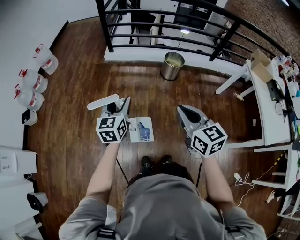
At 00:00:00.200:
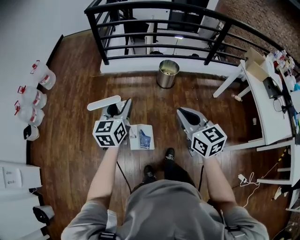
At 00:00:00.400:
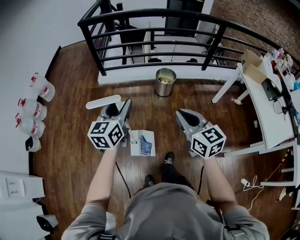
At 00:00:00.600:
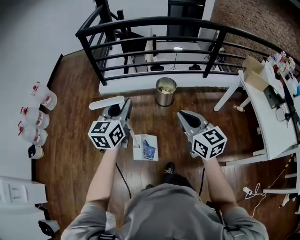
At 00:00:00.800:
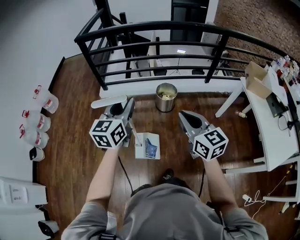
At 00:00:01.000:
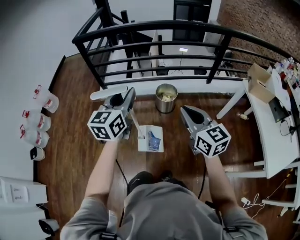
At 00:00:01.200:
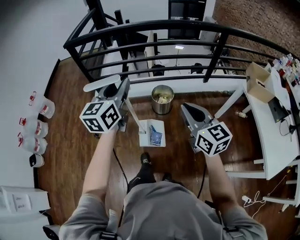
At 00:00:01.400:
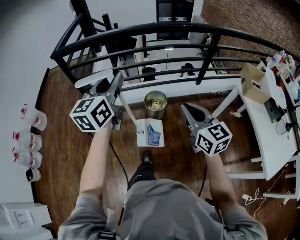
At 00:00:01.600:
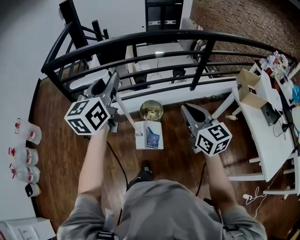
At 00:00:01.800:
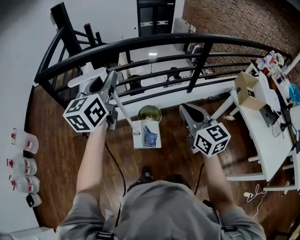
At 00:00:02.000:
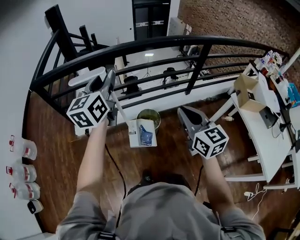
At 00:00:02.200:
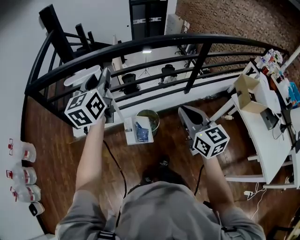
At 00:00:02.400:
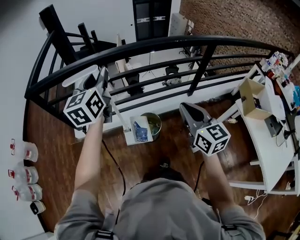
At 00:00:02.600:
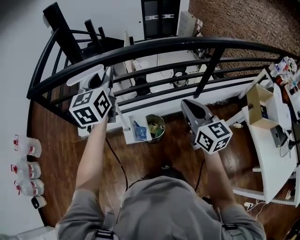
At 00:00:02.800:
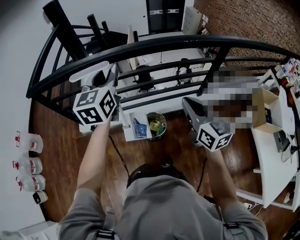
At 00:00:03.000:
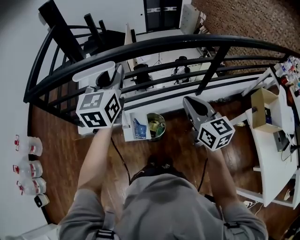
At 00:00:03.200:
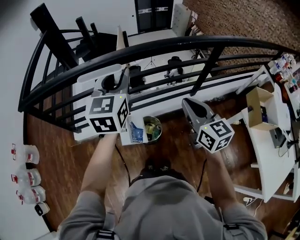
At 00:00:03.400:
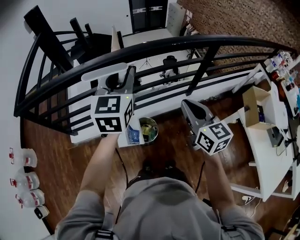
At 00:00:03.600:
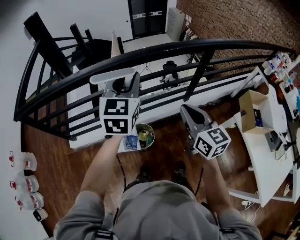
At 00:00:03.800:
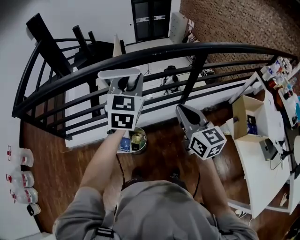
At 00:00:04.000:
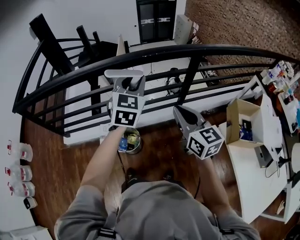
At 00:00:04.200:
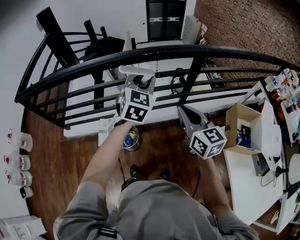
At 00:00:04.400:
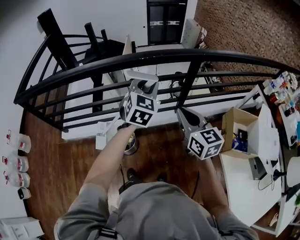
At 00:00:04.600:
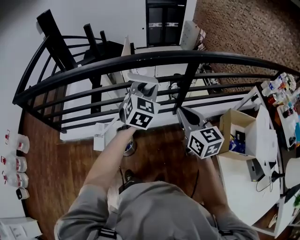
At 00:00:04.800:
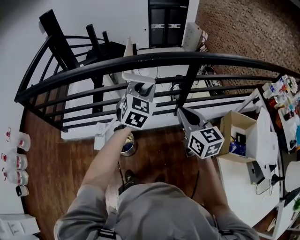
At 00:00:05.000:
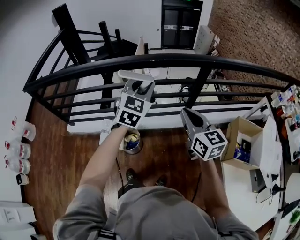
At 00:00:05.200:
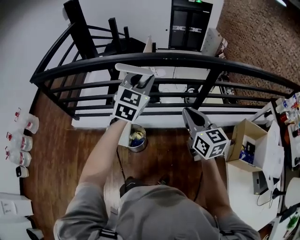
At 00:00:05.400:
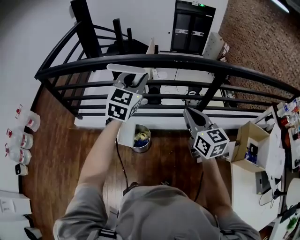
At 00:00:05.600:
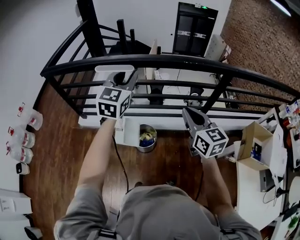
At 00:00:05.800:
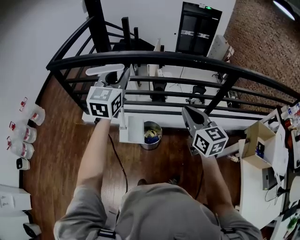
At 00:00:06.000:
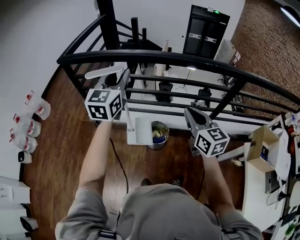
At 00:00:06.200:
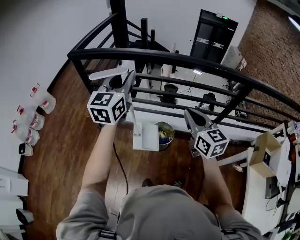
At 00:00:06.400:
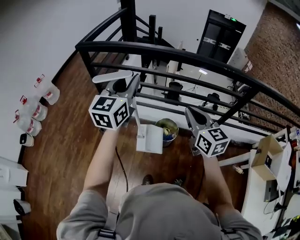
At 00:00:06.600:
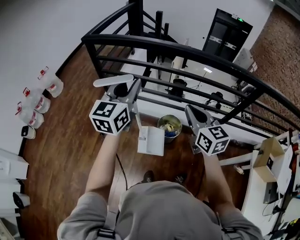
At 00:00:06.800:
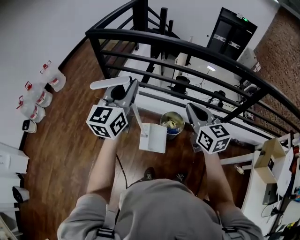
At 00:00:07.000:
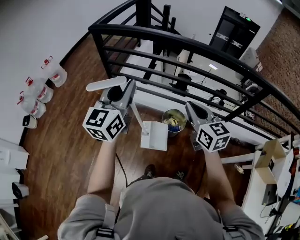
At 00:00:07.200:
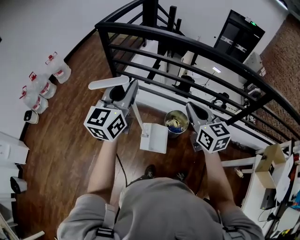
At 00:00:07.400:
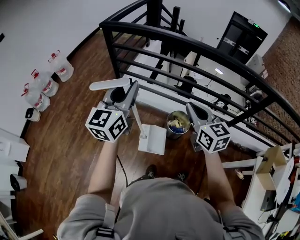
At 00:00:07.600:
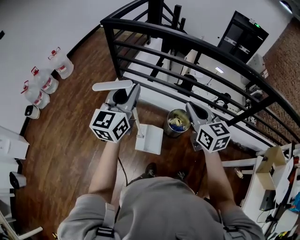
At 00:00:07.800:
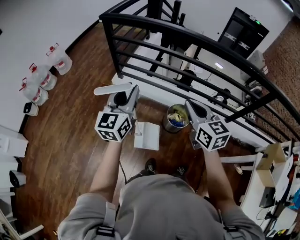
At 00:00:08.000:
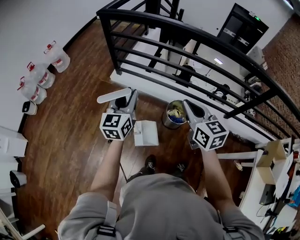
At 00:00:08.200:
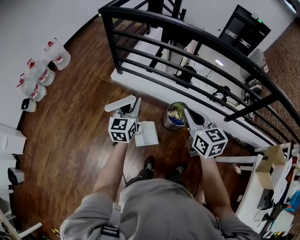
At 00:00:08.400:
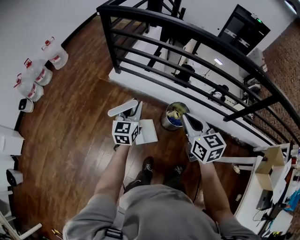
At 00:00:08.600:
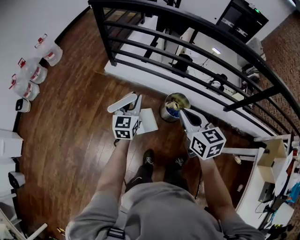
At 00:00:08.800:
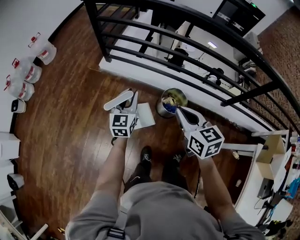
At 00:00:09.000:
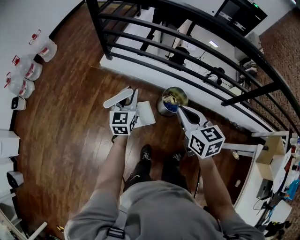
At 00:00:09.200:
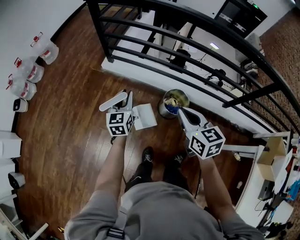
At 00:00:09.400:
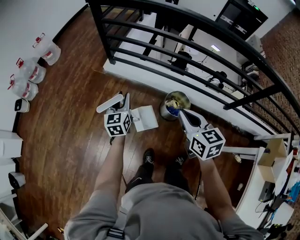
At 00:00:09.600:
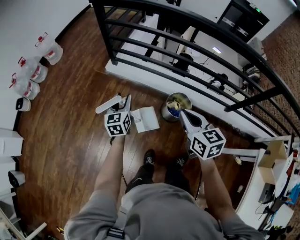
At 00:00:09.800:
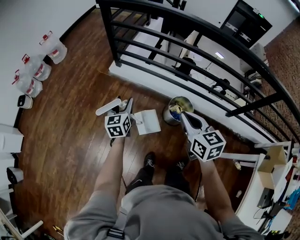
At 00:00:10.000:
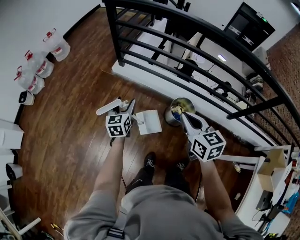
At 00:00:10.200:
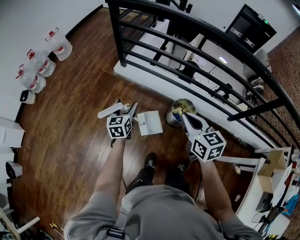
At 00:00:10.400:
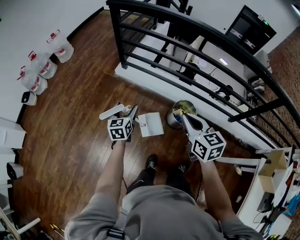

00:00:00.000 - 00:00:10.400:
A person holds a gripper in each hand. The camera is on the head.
00:00:00.000 - 00:00:01.400: The pair of grippers is taken forward and to the right, roughly 50 cm. The left gripper goes about 25 cm upward, and changes its angle by approximately 20 degrees.
00:00:01.400 - 00:00:03.000: The grippers both shift forward by roughly 35 cm.
00:00:03.000 - 00:00:04.400: The left gripper moves to the right, roughly 35 cm, and turns by about 30 degrees. Meanwhile the right gripper is displaced to the right by about 25 cm.
00:00:04.400 - 00:00:06.000: The right gripper shifts approximately 25 cm to the left. Meanwhile the left gripper travels to the left by about 40 cm, and swivels some 30 degrees.
00:00:06.000 - 00:00:07.400: The left gripper shifts approximately 20 cm to the left and backward; the right gripper goes roughly 20 cm to the left.
00:00:07.400 - 00:00:09.000: The left gripper travels downward by about 30 cm, while the right gripper shifts some 15 cm downward.
00:00:09.000 - 00:00:10.400: The left gripper shifts about 10 cm to the left and downward, and opens.

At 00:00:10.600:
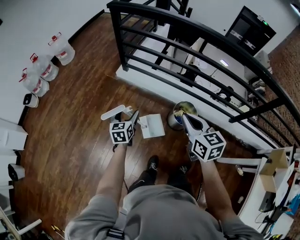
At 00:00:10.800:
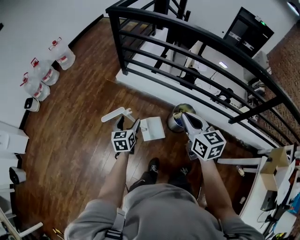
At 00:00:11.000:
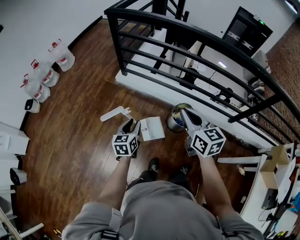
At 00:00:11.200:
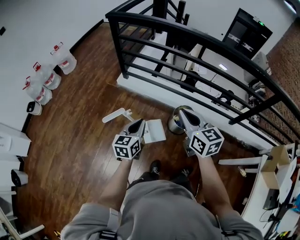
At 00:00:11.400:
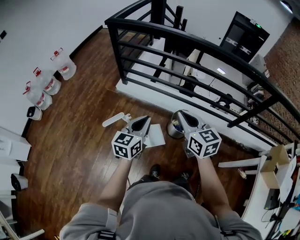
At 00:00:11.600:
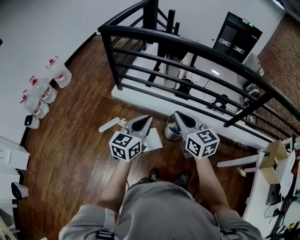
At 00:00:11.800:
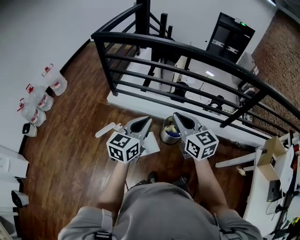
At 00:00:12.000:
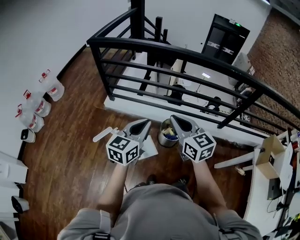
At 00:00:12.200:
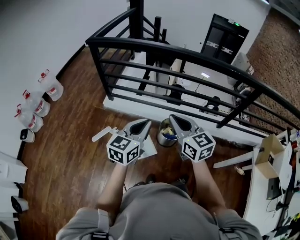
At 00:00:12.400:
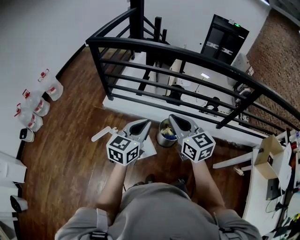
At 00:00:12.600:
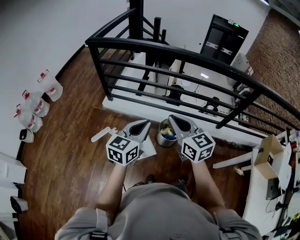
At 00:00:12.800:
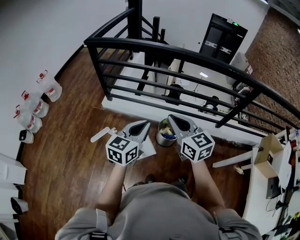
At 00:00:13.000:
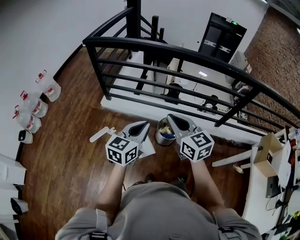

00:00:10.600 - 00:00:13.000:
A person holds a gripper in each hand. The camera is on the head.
00:00:10.600 - 00:00:11.800: The right gripper goes roughly 10 cm upward. Meanwhile the left gripper heads upward and to the right, covering some 30 cm, turns by about 40 degrees, and closes.
00:00:11.800 - 00:00:13.000: There are only small adjustments of the grippers.

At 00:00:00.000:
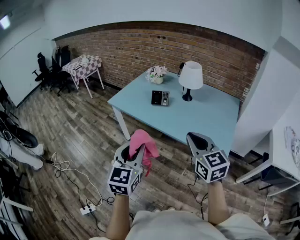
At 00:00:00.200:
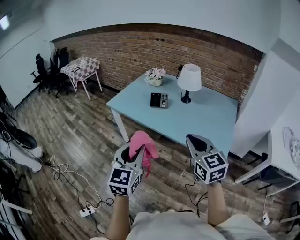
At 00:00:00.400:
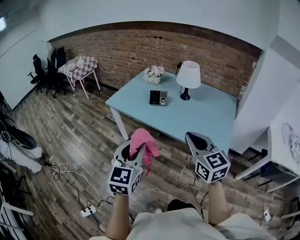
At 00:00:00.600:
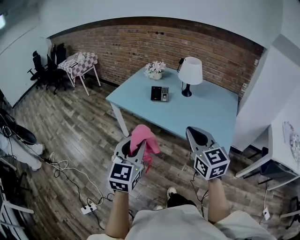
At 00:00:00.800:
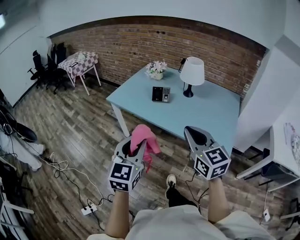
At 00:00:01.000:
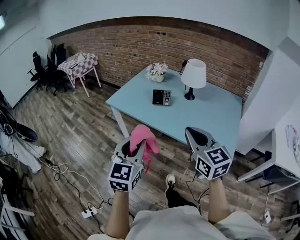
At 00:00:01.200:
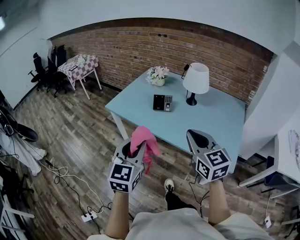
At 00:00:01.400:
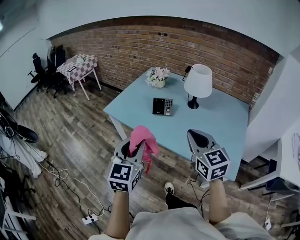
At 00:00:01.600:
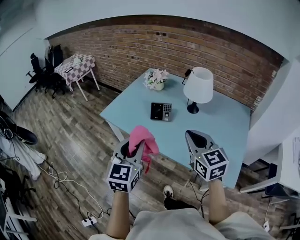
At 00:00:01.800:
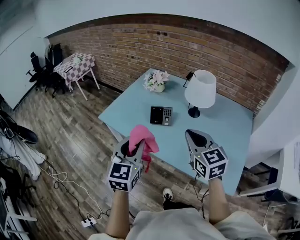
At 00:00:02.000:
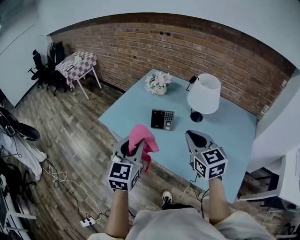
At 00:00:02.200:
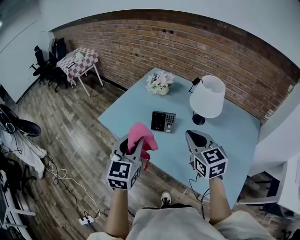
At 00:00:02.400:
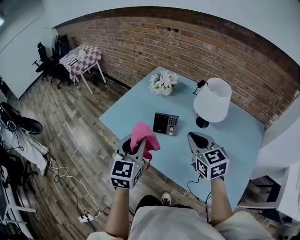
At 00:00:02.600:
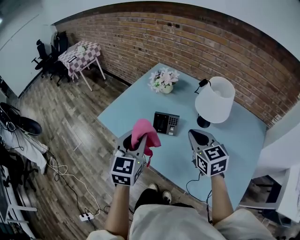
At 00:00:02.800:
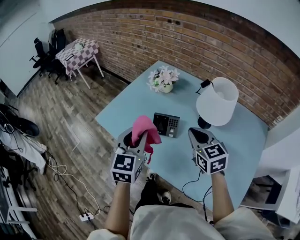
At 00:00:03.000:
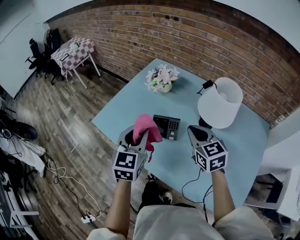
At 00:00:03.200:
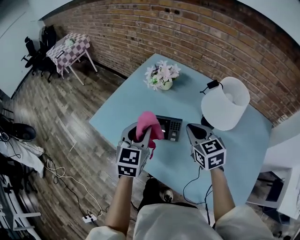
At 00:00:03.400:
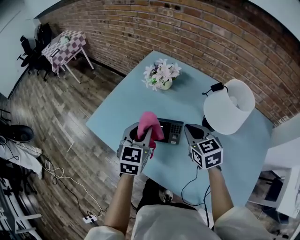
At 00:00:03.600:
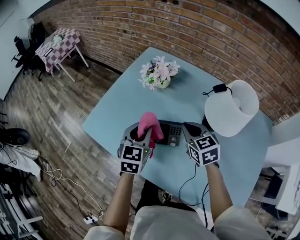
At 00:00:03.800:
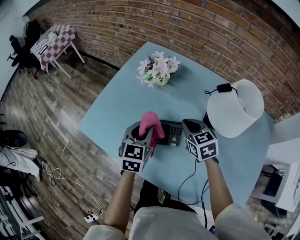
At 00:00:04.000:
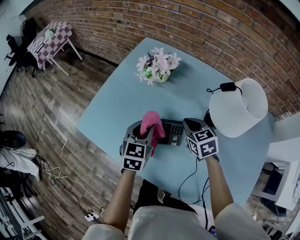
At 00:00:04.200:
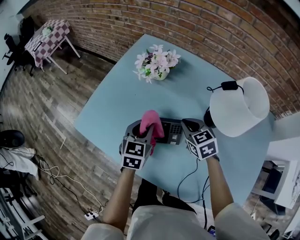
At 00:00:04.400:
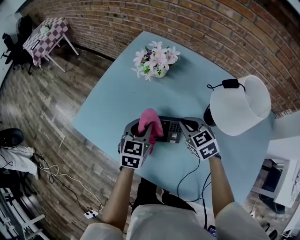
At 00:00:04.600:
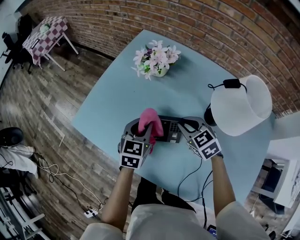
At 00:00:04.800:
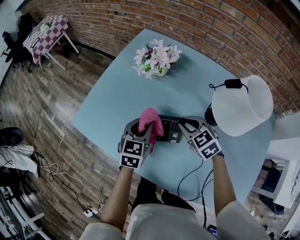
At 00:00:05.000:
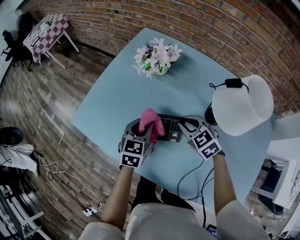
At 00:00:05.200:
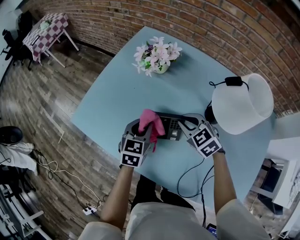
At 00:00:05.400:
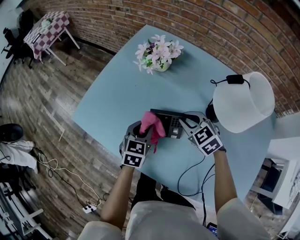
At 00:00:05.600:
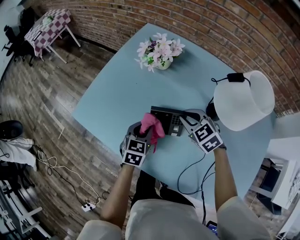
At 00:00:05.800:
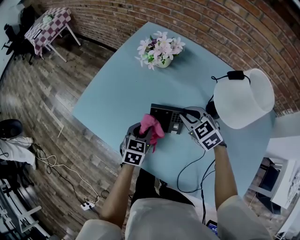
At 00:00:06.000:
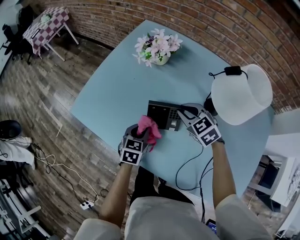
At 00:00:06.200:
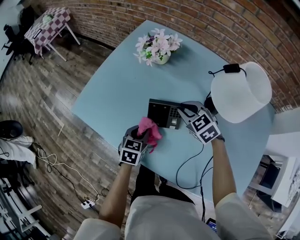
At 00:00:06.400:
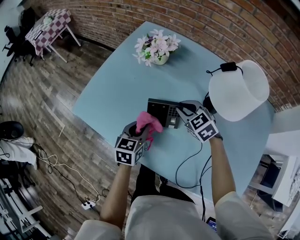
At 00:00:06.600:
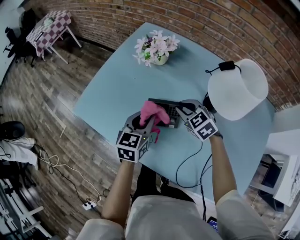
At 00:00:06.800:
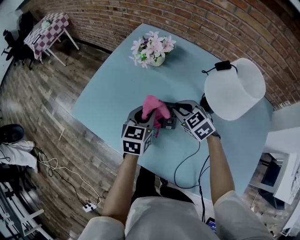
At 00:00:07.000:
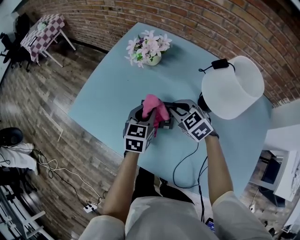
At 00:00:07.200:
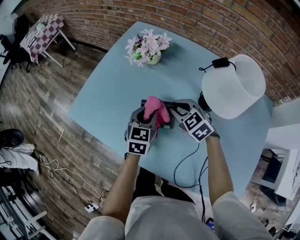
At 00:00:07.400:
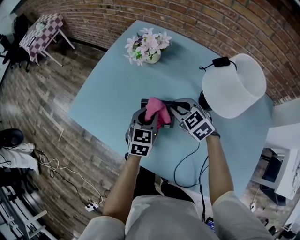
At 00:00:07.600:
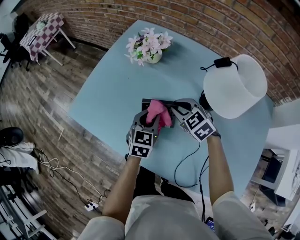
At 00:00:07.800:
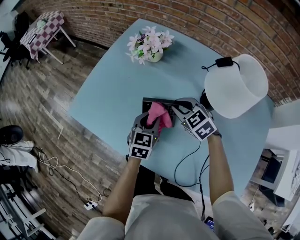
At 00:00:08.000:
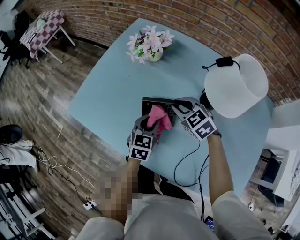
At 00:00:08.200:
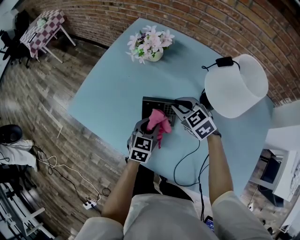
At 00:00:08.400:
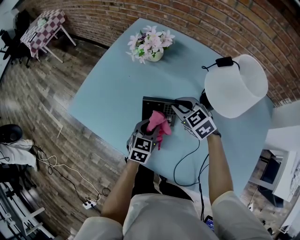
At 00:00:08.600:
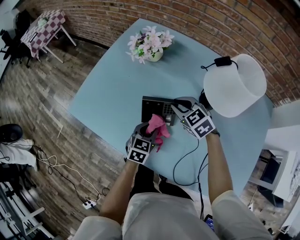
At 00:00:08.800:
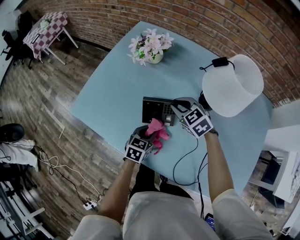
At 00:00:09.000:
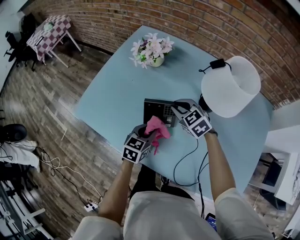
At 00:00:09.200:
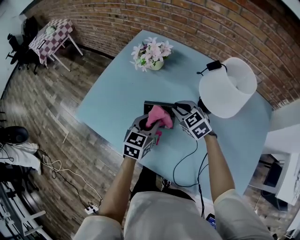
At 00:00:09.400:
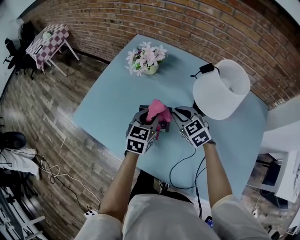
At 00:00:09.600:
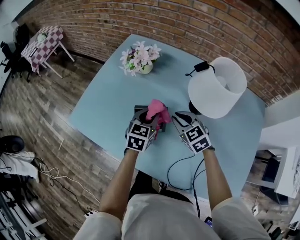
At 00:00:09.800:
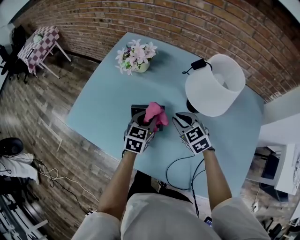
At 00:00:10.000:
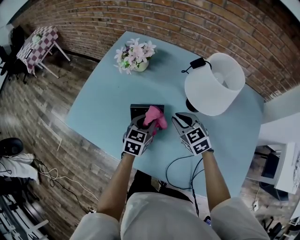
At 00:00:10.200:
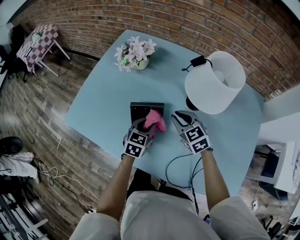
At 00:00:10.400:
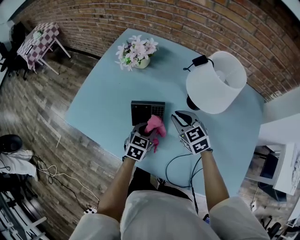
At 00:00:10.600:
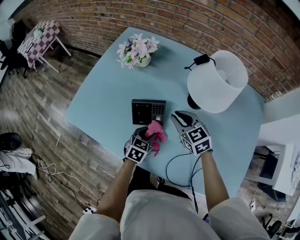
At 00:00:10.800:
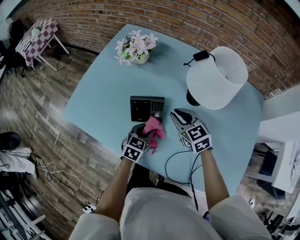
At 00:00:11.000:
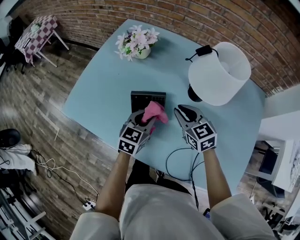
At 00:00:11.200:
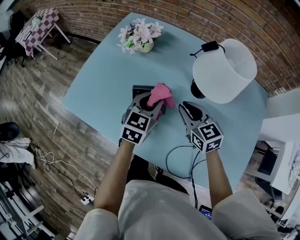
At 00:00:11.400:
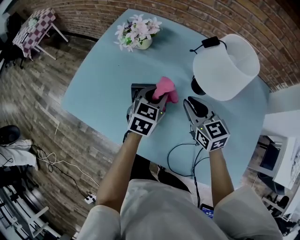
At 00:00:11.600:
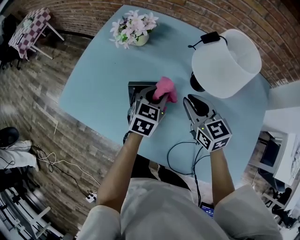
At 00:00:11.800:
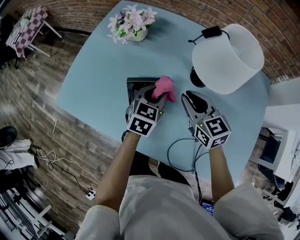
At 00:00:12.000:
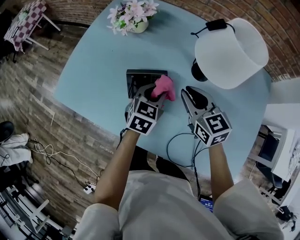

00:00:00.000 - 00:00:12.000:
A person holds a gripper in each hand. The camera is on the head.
00:00:00.000 - 00:00:01.600: The two grippers go approximately 25 cm forward.
00:00:01.600 - 00:00:03.000: Both grippers travel together forward, roughly 25 cm.
00:00:03.000 - 00:00:04.400: Both grippers travel together downward and forward, approximately 20 cm.
00:00:04.400 - 00:00:06.000: The left gripper goes some 10 cm downward and backward.
00:00:06.000 - 00:00:07.600: The left gripper is displaced to the right and upward by some 10 cm.
00:00:07.600 - 00:00:09.000: The left gripper shifts some 5 cm backward.
00:00:09.000 - 00:00:10.400: The grippers both shift to the right by some 5 cm. The left gripper moves approximately 10 cm upward and comes back.
00:00:10.400 - 00:00:12.000: The left gripper travels upward and back again, some 10 cm each way.
